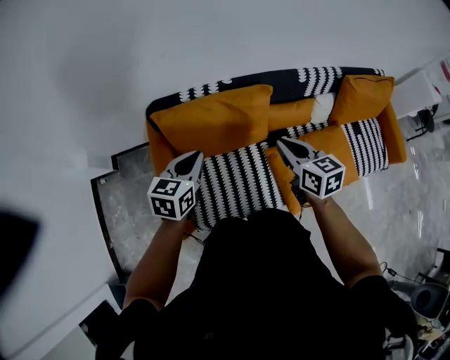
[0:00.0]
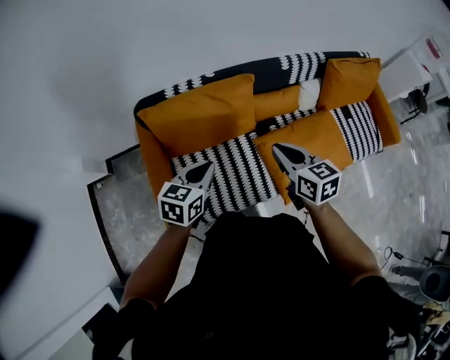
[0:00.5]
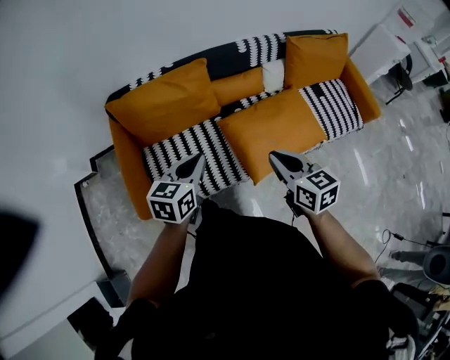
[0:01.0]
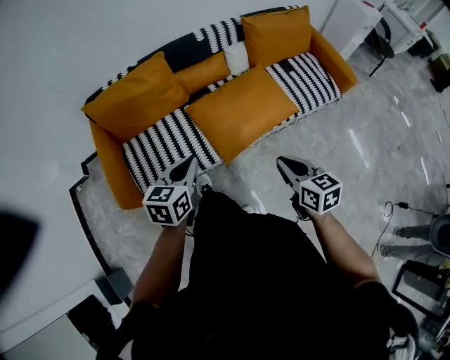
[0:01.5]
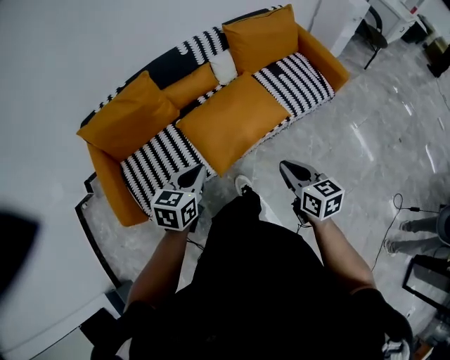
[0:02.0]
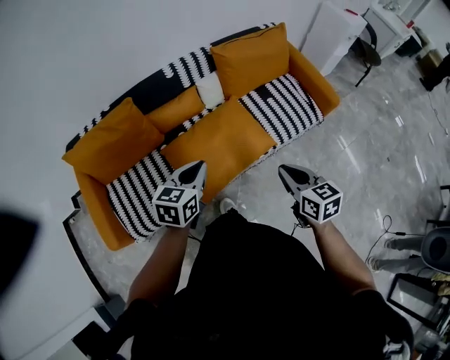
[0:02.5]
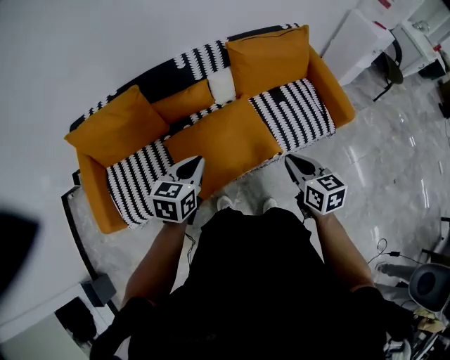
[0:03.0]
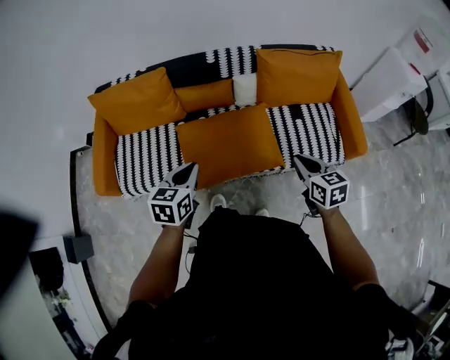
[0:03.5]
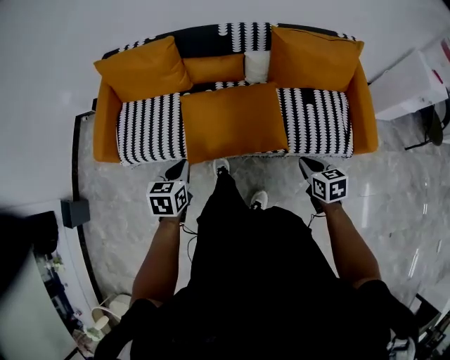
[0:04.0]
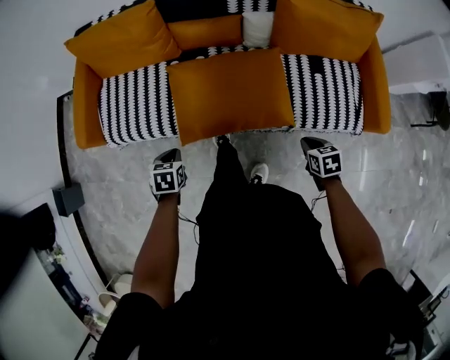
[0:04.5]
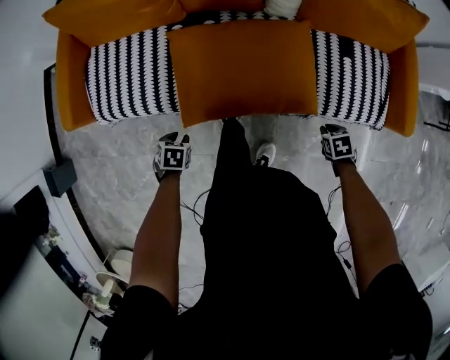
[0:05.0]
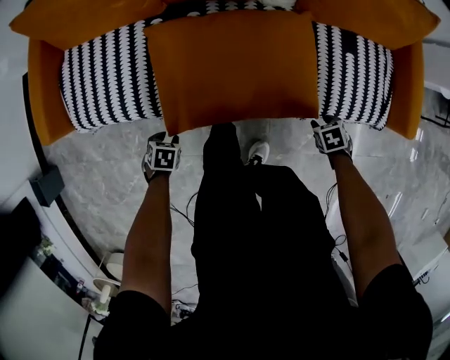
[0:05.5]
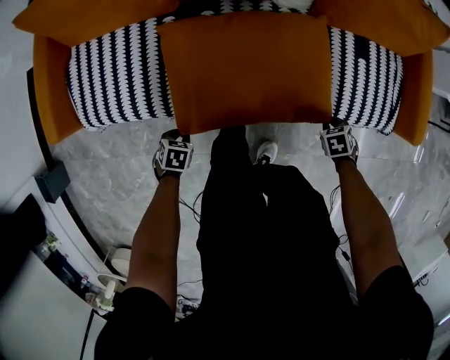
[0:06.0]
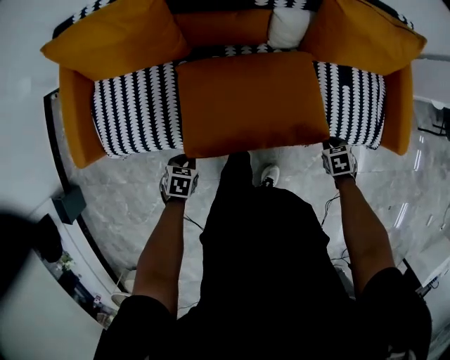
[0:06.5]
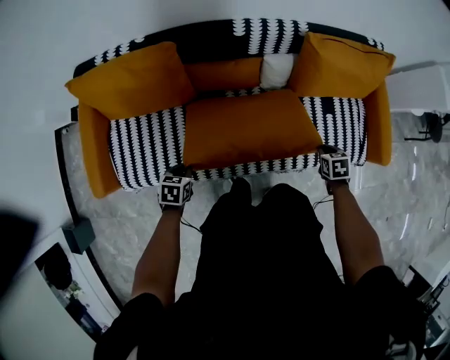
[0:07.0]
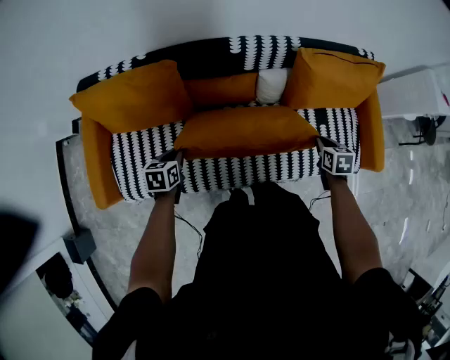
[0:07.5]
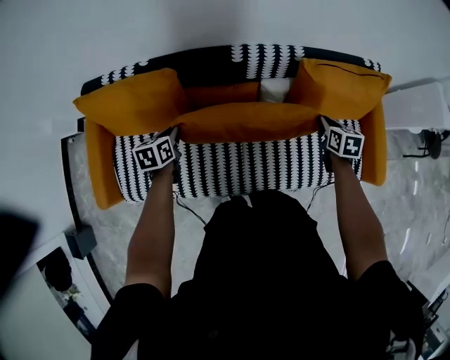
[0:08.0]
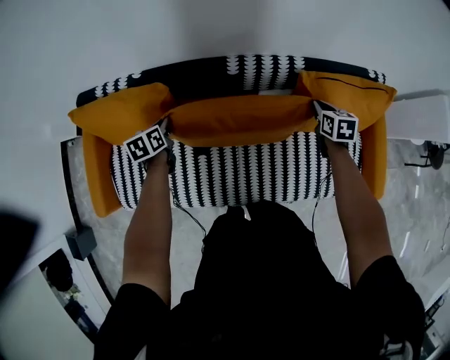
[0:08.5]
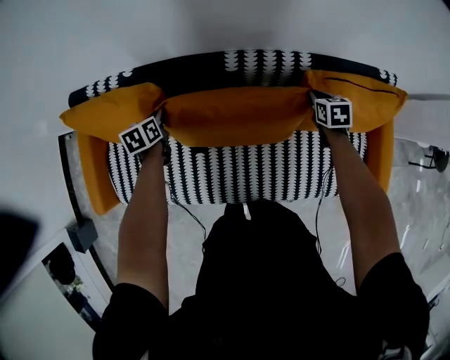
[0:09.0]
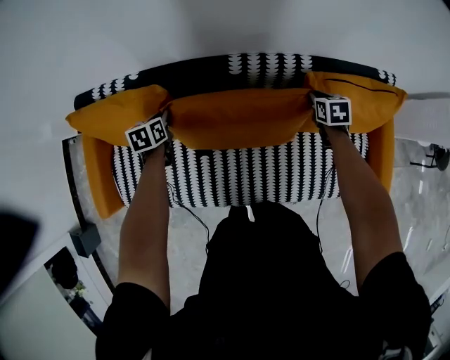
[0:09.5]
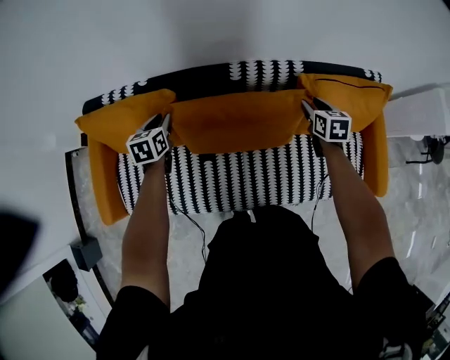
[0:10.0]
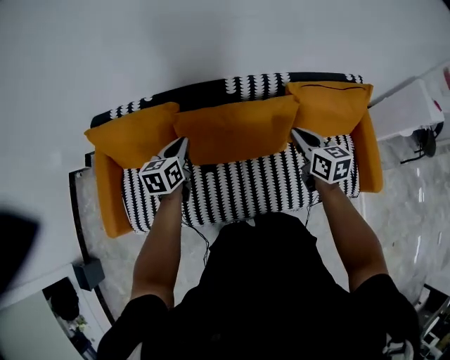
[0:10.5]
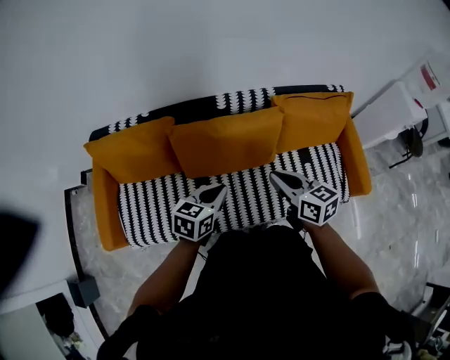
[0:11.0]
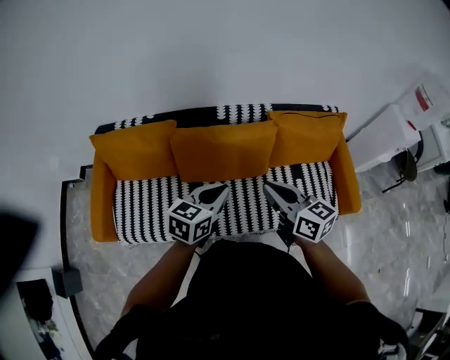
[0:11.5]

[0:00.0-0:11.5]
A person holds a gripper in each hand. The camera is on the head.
0:00.0 to 0:02.0: The two grippers travel together, to the right and backward, about 50 cm.
0:02.0 to 0:04.0: The right gripper changes place by about 35 cm, and changes its angle by about 30 degrees, while the left gripper changes place by approximately 15 cm, and swivels about 40 degrees.
0:04.0 to 0:06.0: The two grippers go roughly 40 cm downward. The right gripper angles its fingers downward, by about 40 degrees, and opens and closes again, while the left gripper angles its fingers downward, by roughly 30 degrees.
0:06.0 to 0:07.5: Both grippers travel together upward, approximately 25 cm. The left gripper swivels some 30 degrees. The right gripper changes its angle by some 40 degrees.
0:07.5 to 0:09.5: Both grippers move forward, roughly 25 cm.
0:09.5 to 0:11.5: The right gripper shifts approximately 50 cm backward and upward, tilts its fingers roughly 40 degrees upward, and opens, then closes once more, while the left gripper heads backward, upward and to the right, covering about 50 cm, and turns by roughly 50 degrees.

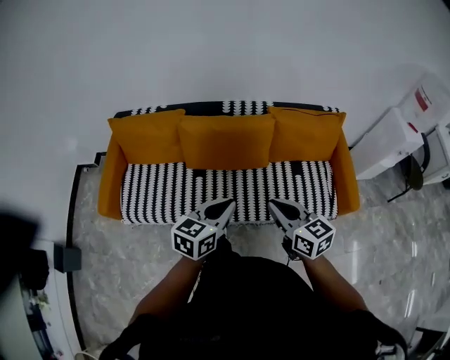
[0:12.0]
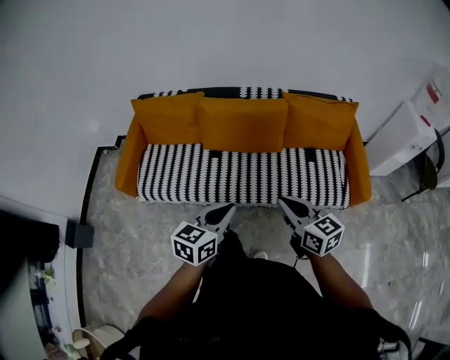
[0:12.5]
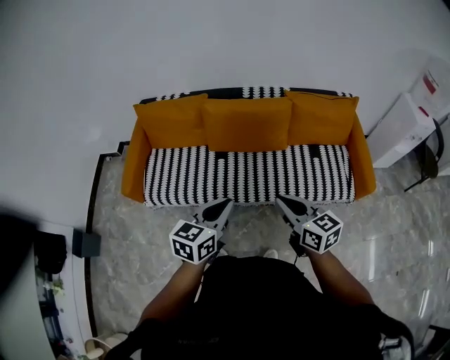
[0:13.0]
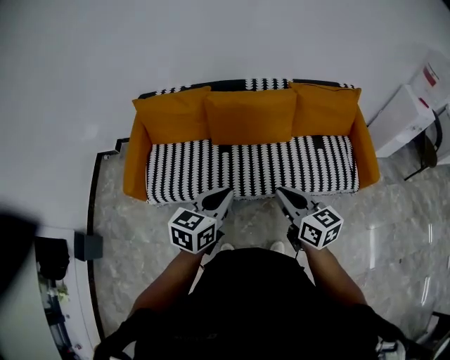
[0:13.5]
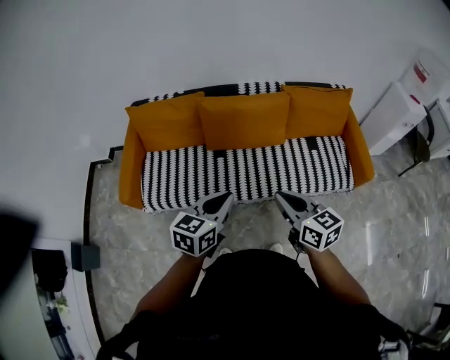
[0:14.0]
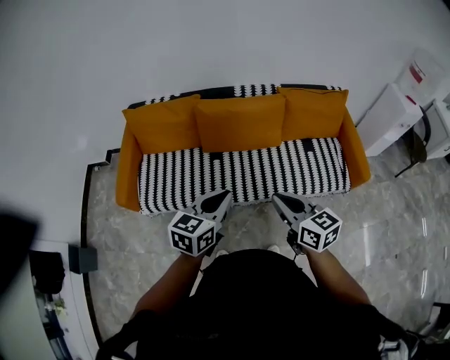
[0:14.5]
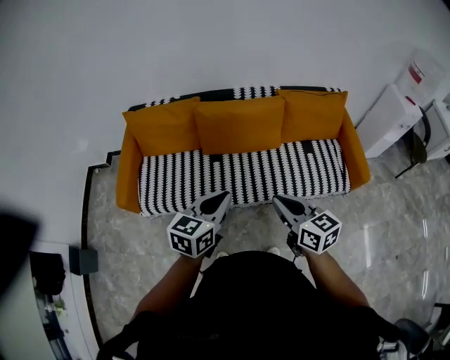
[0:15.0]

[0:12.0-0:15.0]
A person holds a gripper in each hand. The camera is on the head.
0:12.0 to 0:13.5: Both grippers travel together to the left and backward, about 15 cm.
0:13.5 to 0:15.0: The grippers move only a little.

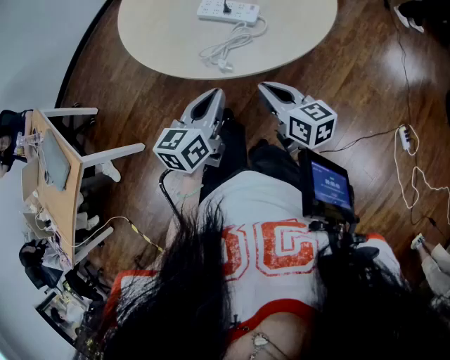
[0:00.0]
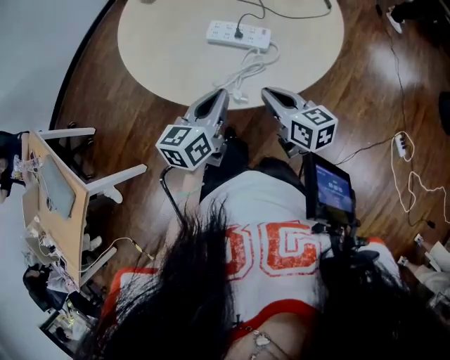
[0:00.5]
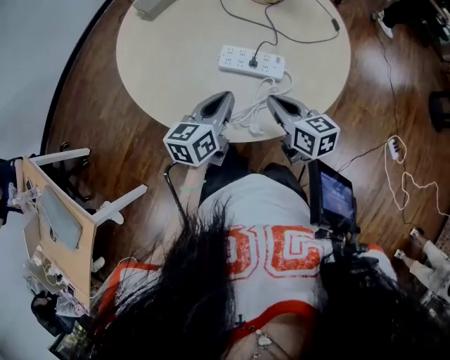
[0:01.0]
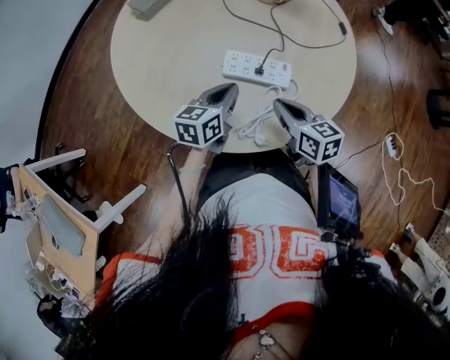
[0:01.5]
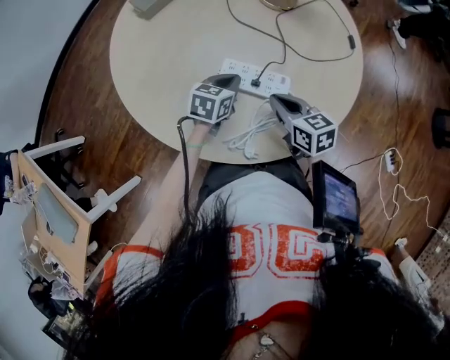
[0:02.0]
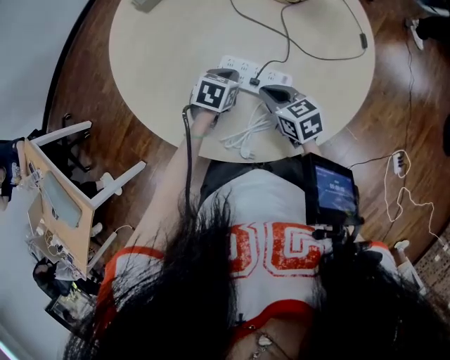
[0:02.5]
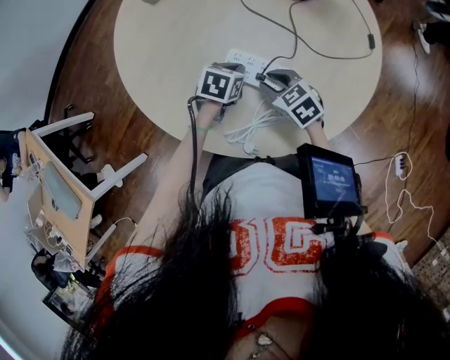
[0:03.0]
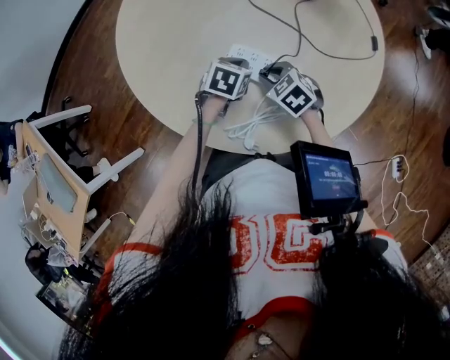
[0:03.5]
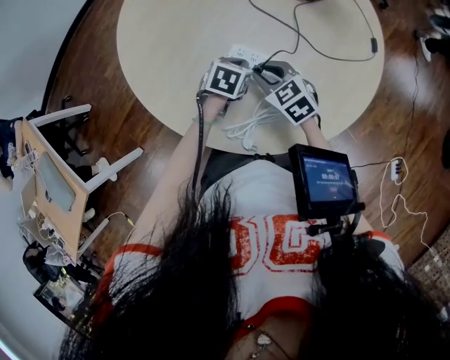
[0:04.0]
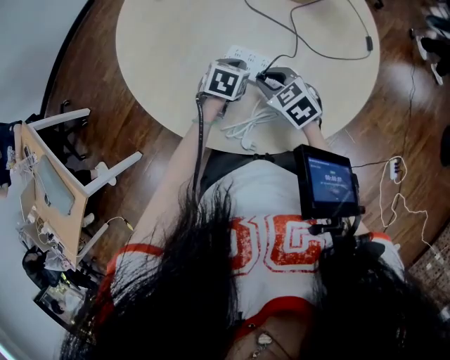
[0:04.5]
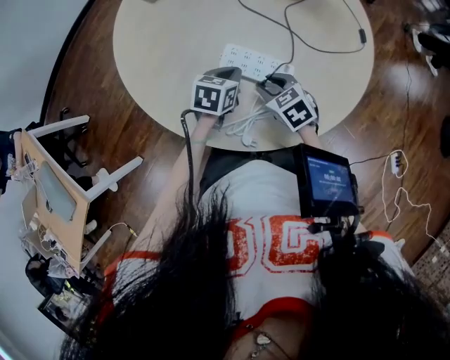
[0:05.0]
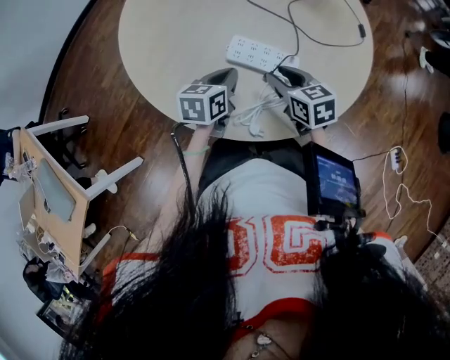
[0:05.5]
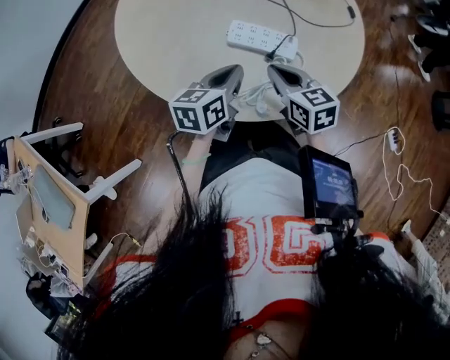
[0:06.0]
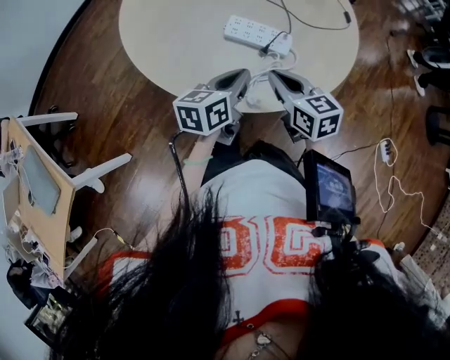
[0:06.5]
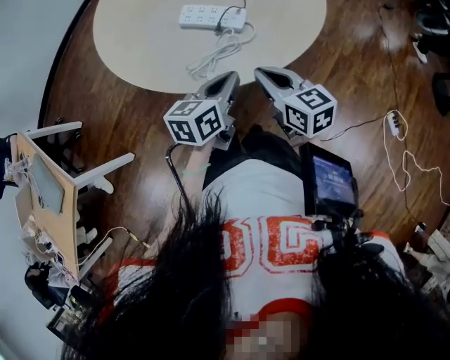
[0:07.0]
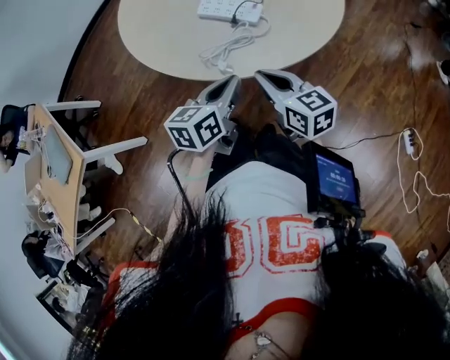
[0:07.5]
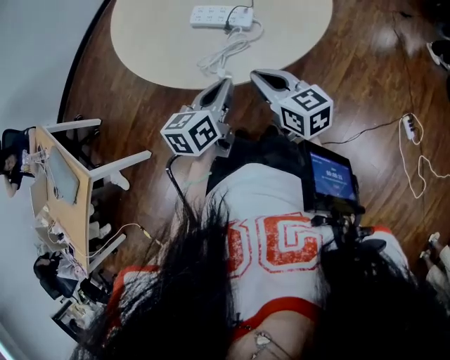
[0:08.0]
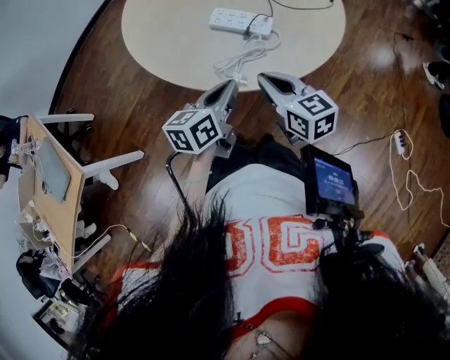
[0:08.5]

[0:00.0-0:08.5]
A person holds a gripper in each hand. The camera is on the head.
0:00.0 to 0:02.0: The right gripper heads forward, covering roughly 20 cm. The left gripper goes approximately 30 cm forward and downward, and swivels some 30 degrees.
0:02.0 to 0:04.0: The right gripper shifts about 10 cm to the left and forward, and rotates approximately 40 degrees.
0:04.0 to 0:06.5: The two grippers go about 15 cm backward and upward. The left gripper points its fingers some 40 degrees further upward. Meanwhile the right gripper changes its angle by roughly 30 degrees.
0:06.5 to 0:08.5: The left gripper moves backward, some 10 cm; the right gripper moves backward and upward, roughly 10 cm.

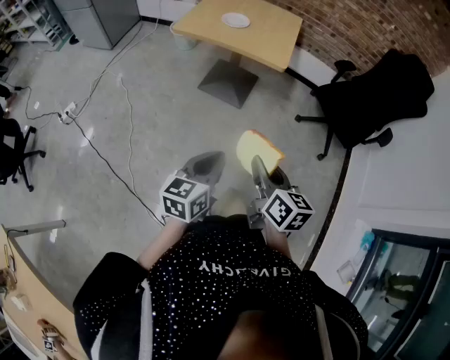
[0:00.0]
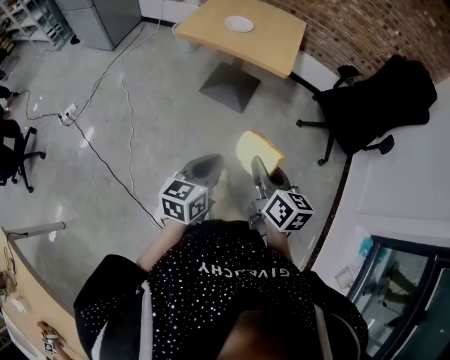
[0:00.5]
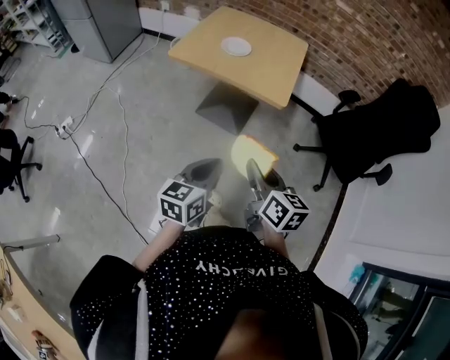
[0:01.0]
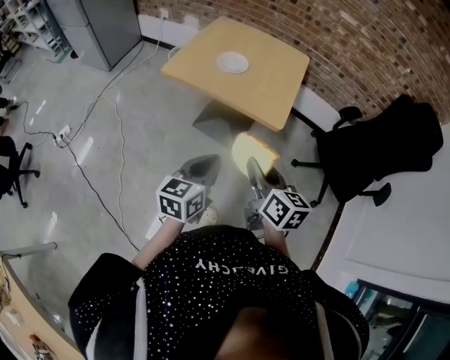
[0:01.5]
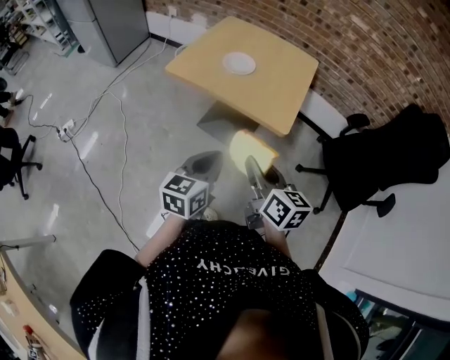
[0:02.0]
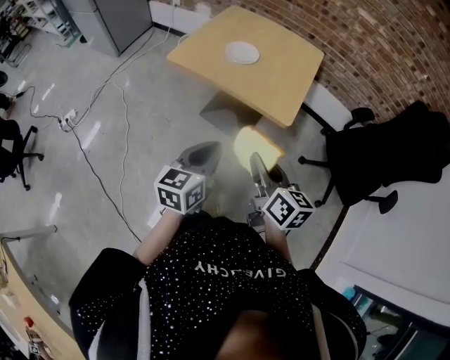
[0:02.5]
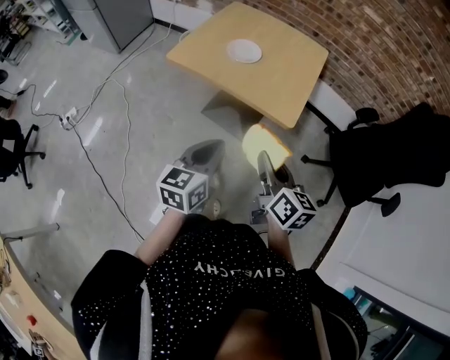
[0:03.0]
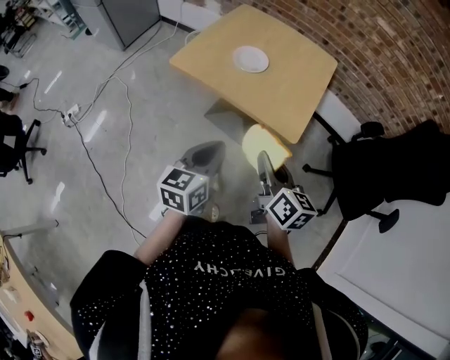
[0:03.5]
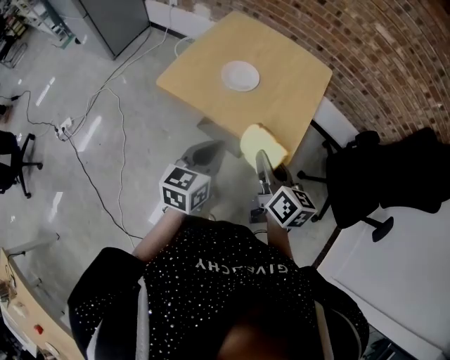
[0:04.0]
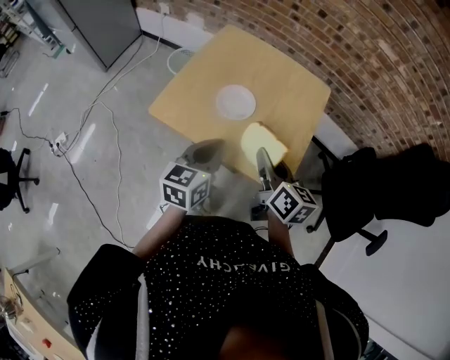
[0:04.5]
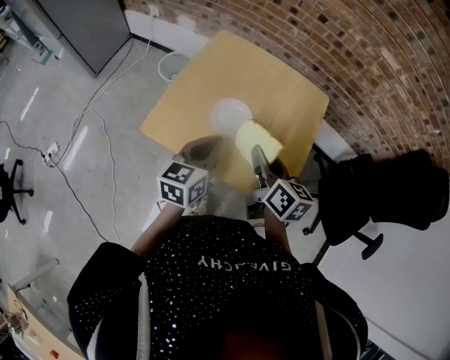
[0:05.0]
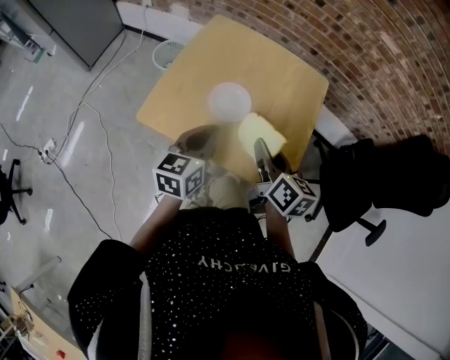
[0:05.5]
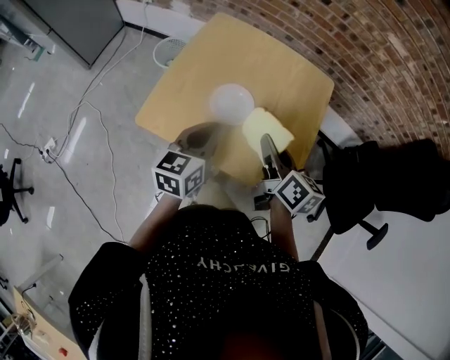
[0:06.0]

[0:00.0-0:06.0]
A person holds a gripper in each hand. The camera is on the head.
0:00.0 to 0:02.0: Both grippers move forward, some 30 cm.
0:02.0 to 0:04.0: The two grippers go approximately 20 cm forward.
0:04.0 to 0:06.0: Both grippers travel together forward, about 20 cm.
